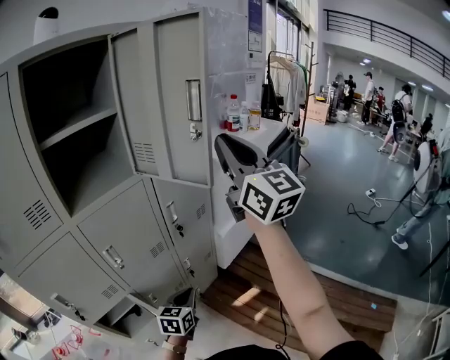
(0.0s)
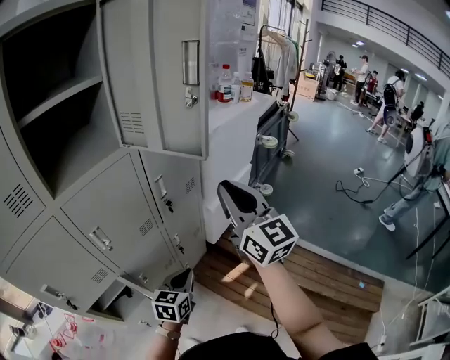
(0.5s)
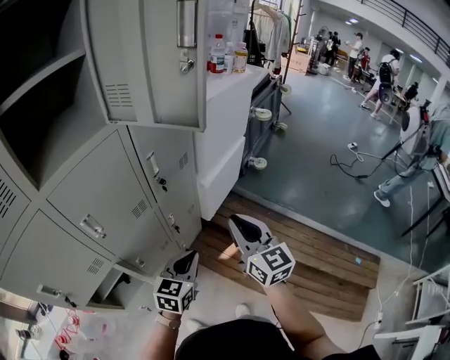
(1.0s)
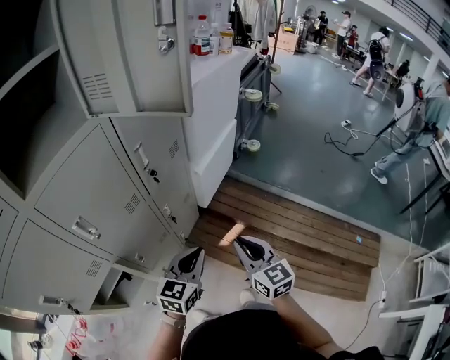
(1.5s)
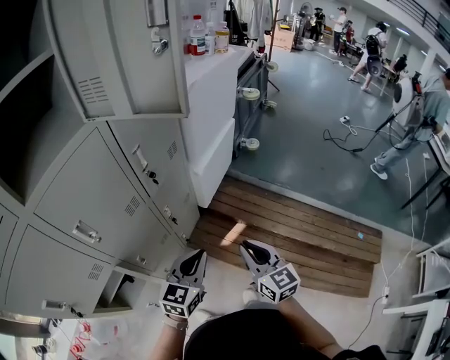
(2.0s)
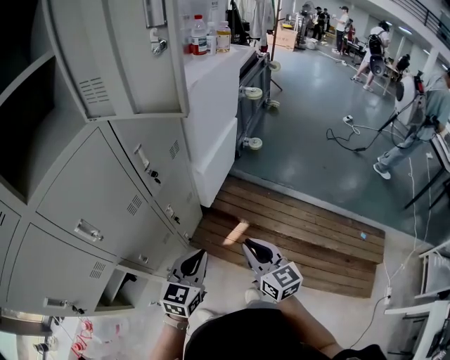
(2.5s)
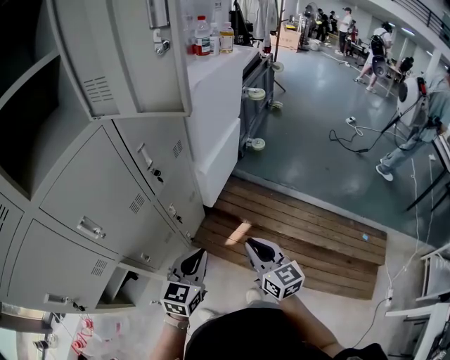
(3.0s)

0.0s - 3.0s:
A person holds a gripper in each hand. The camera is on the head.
0.0s - 1.5s: The right gripper is displaced downward by about 50 cm, and points its fingers roughly 40 degrees further downward. The left gripper is displaced to the right by some 5 cm, and turns by approximately 20 degrees.
1.5s - 3.0s: There are only small adjustments of the grippers.

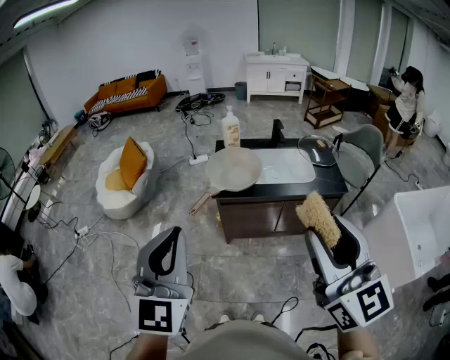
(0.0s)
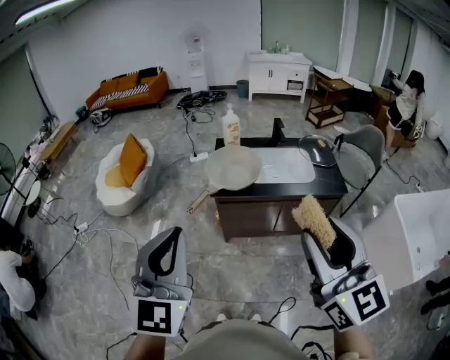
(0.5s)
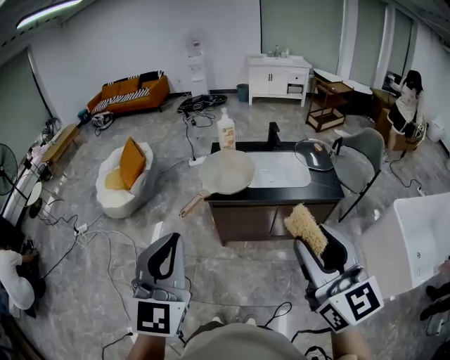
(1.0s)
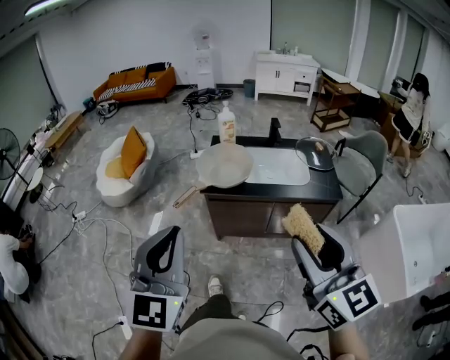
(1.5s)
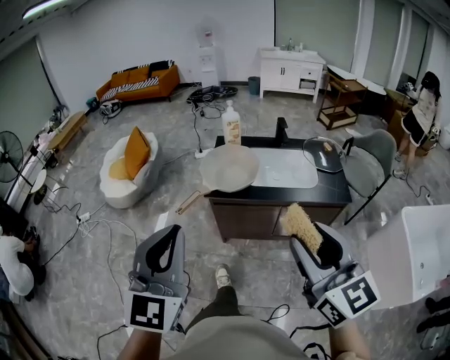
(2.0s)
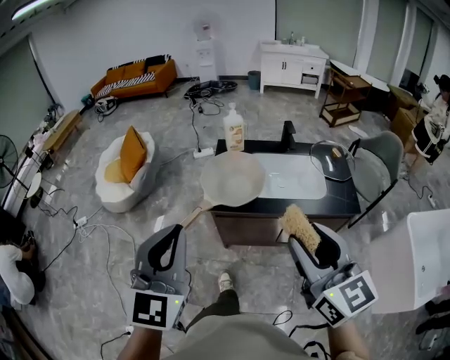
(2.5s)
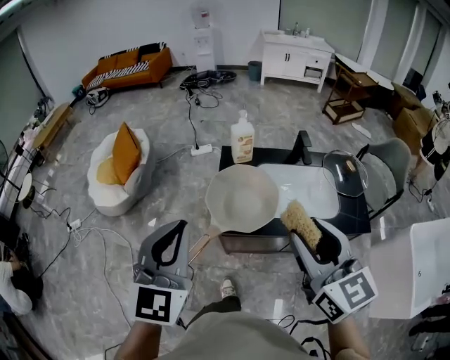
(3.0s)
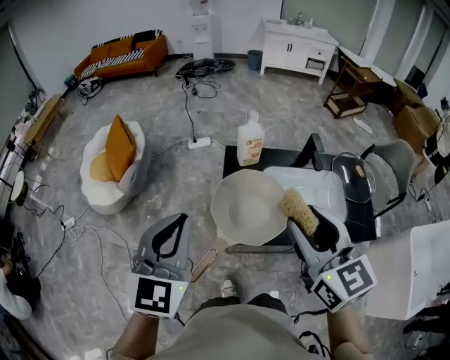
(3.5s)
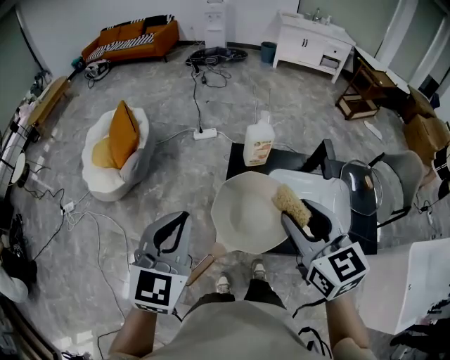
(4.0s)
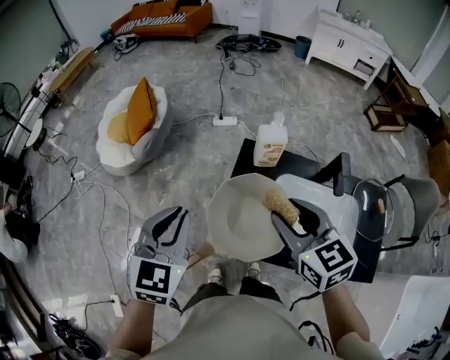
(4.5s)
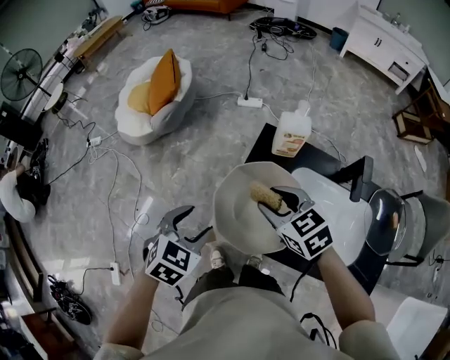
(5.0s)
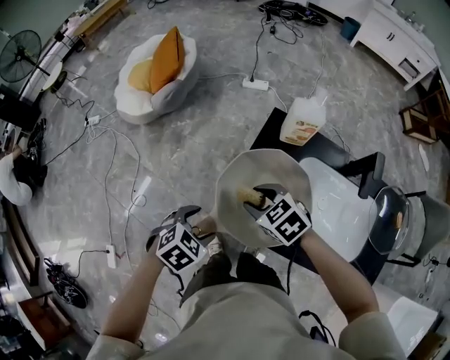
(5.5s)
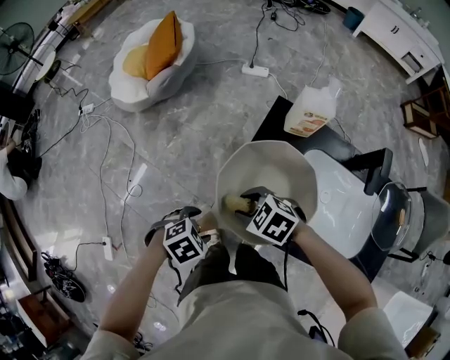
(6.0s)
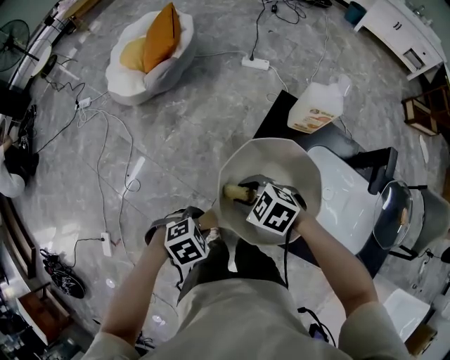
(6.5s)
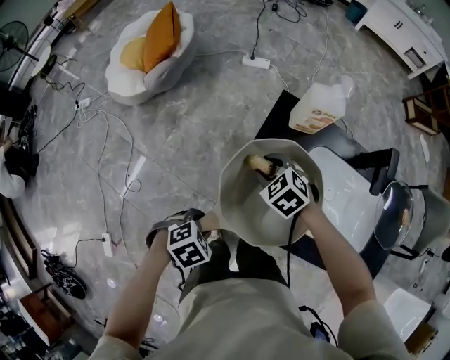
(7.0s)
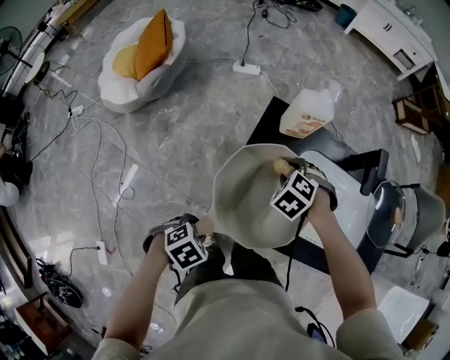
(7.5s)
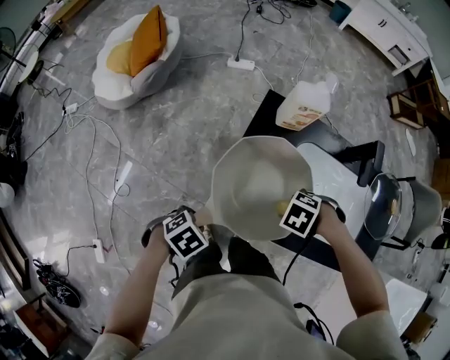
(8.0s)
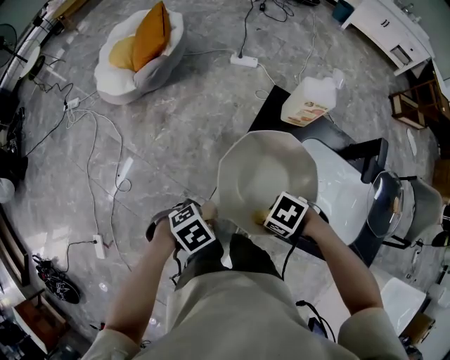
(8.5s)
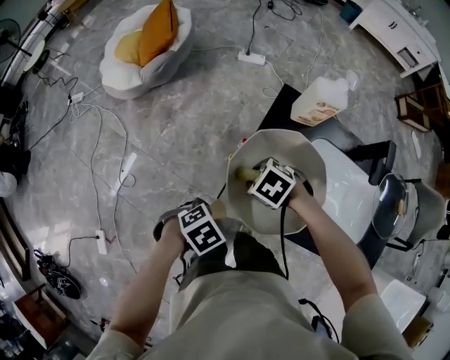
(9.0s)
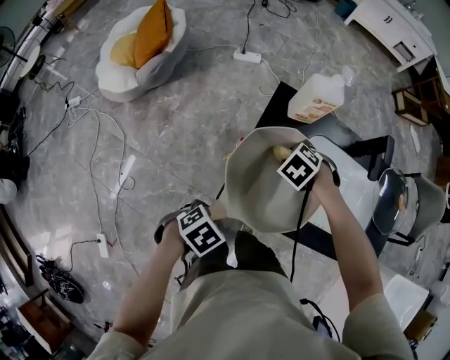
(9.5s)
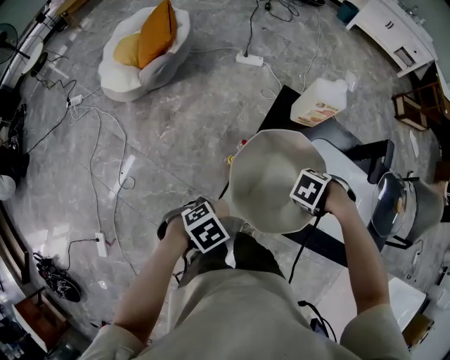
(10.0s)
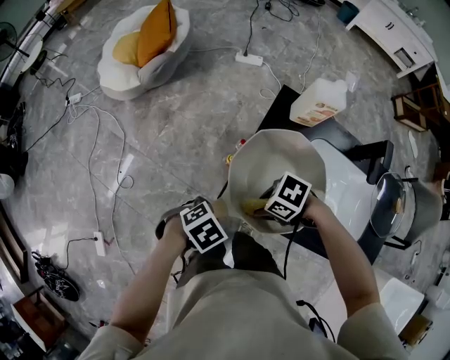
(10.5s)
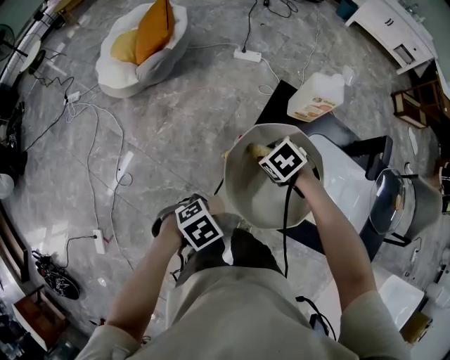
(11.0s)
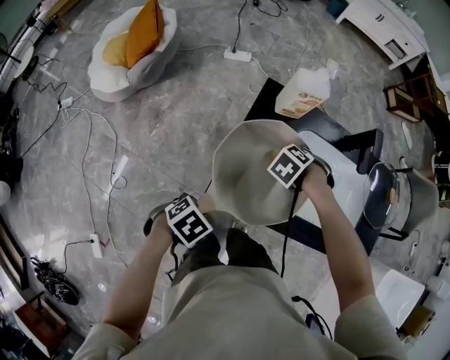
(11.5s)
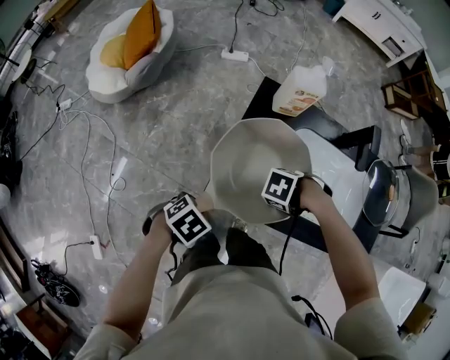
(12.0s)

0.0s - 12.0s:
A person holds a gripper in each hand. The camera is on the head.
0.0s - 2.0s: The right gripper travels downward, to the right and forward by some 10 cm; the left gripper travels to the right by roughly 10 cm.
2.0s - 4.0s: Both grippers are carried forward, approximately 40 cm.
4.0s - 6.0s: Both grippers travel together downward, approximately 35 cm. The right gripper tilts its fingers about 40 degrees downward. The left gripper tips its fingers downward by approximately 60 degrees, and opens up.
6.0s - 8.0s: The right gripper ends up about 20 cm from where it was, and rotates some 40 degrees, while the left gripper closes.

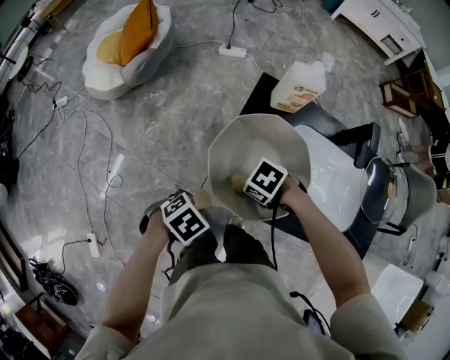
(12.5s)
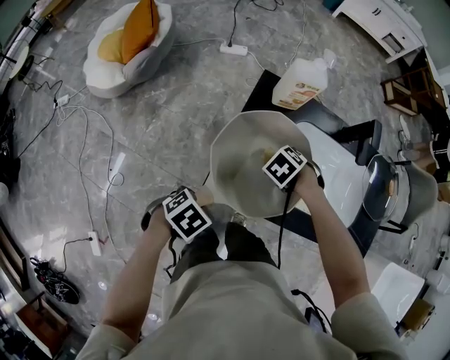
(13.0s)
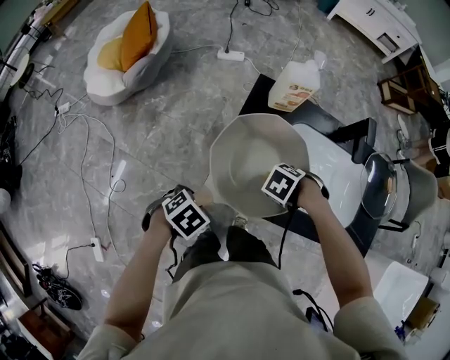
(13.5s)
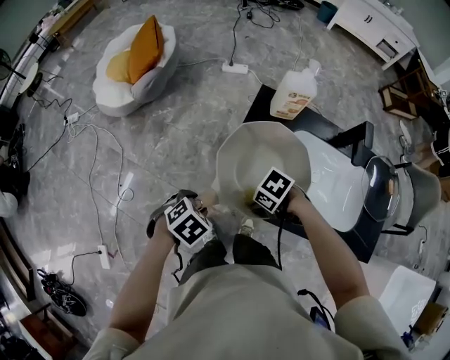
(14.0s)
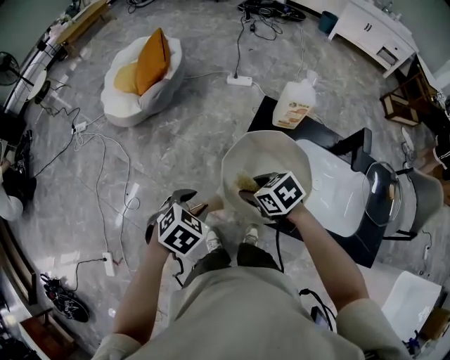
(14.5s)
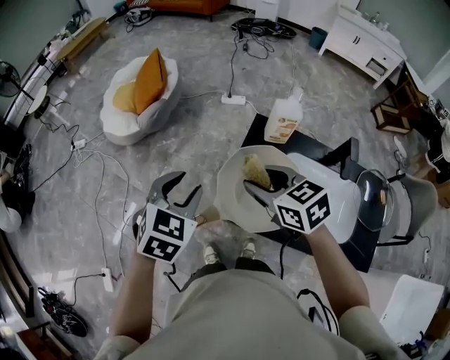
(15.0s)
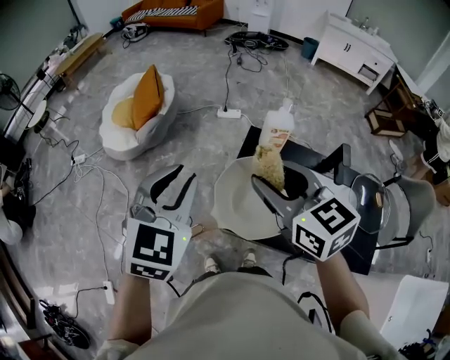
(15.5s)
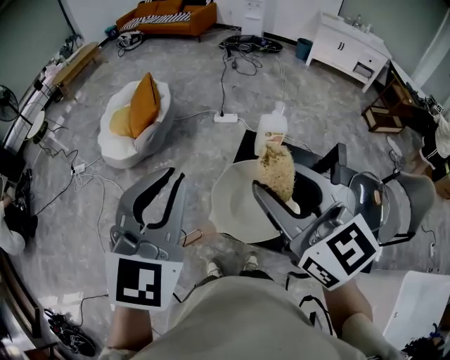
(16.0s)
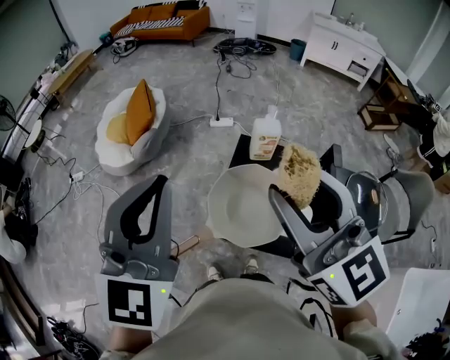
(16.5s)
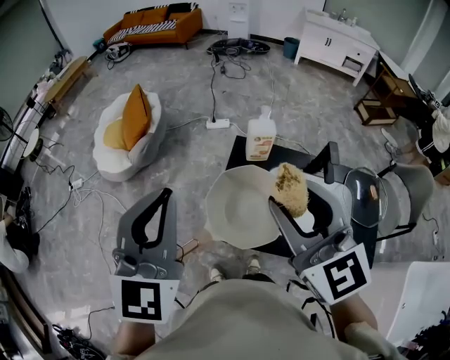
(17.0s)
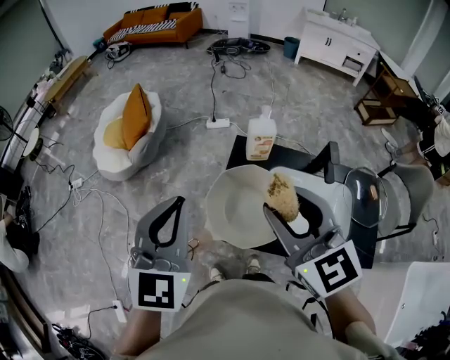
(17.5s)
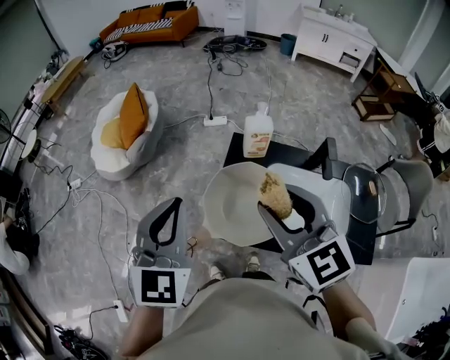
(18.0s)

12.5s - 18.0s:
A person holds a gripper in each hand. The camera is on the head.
12.5s - 14.5s: The two grippers go some 10 cm upward. The right gripper rotates roughly 30 degrees; the left gripper turns by about 30 degrees.
14.5s - 16.0s: The grippers both shift upward by roughly 35 cm. The left gripper points its fingers about 50 degrees further upward, and closes its fingers; the right gripper tips its fingers upward by some 50 degrees.
16.0s - 18.0s: Both grippers travel together downward, some 5 cm.

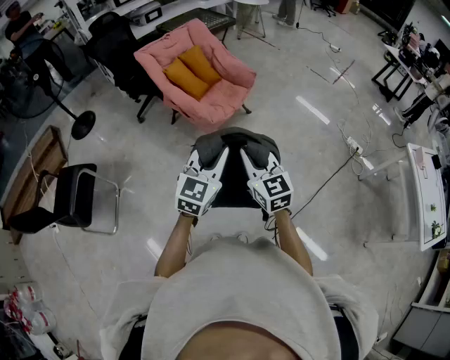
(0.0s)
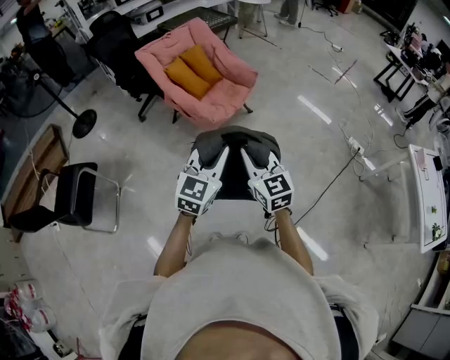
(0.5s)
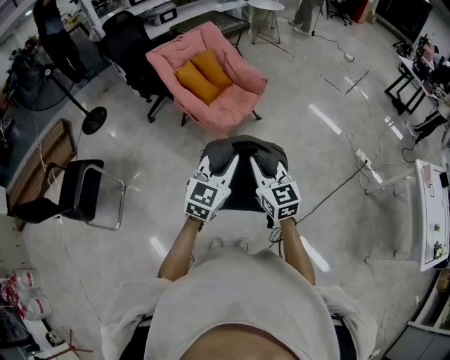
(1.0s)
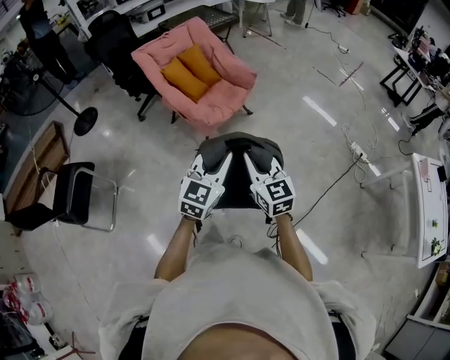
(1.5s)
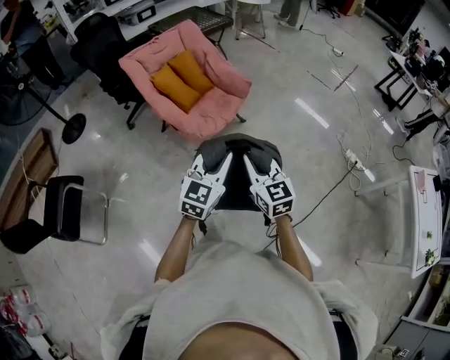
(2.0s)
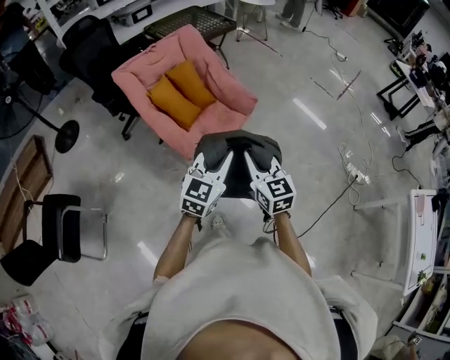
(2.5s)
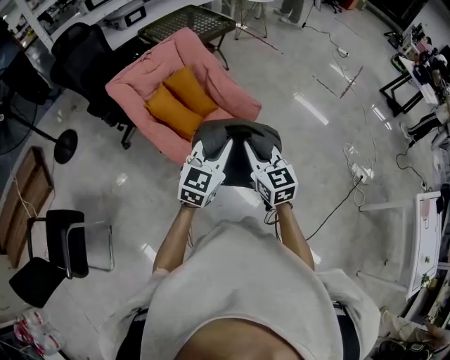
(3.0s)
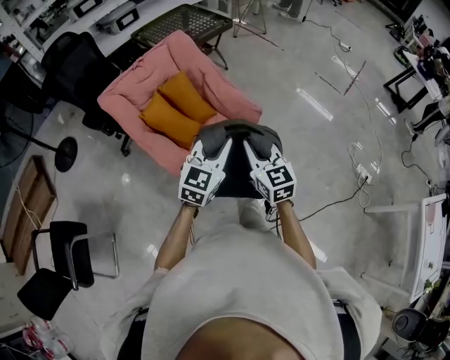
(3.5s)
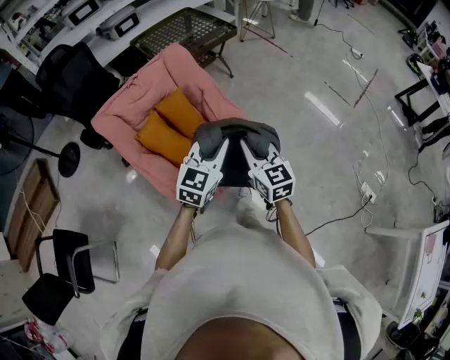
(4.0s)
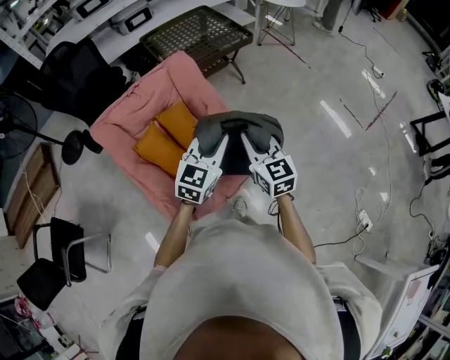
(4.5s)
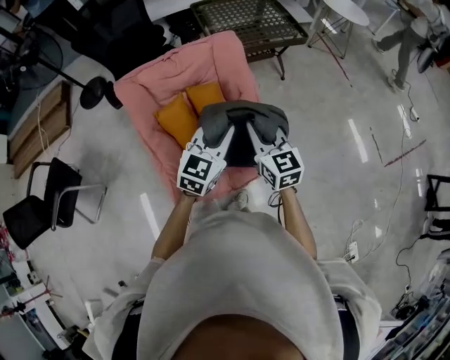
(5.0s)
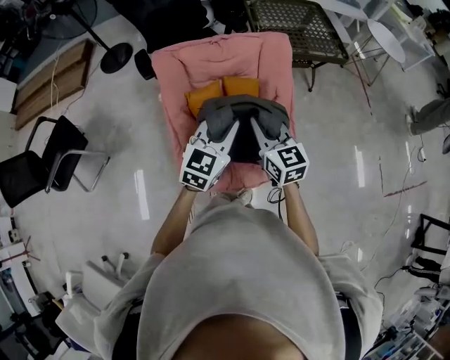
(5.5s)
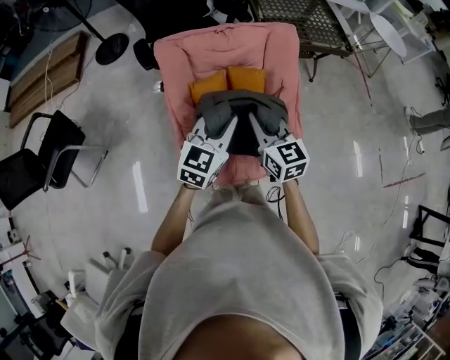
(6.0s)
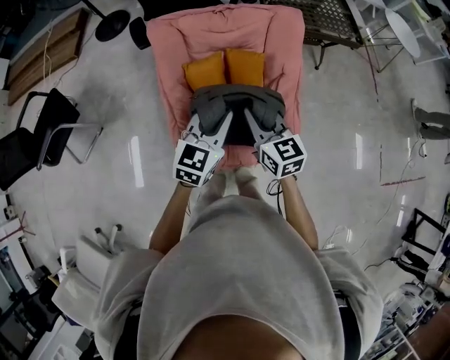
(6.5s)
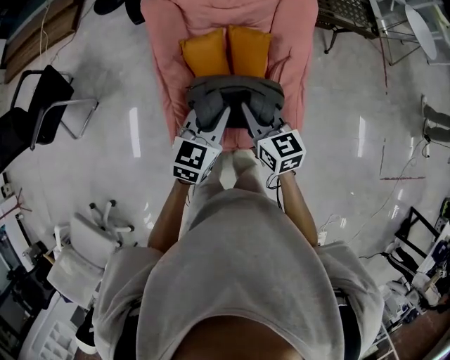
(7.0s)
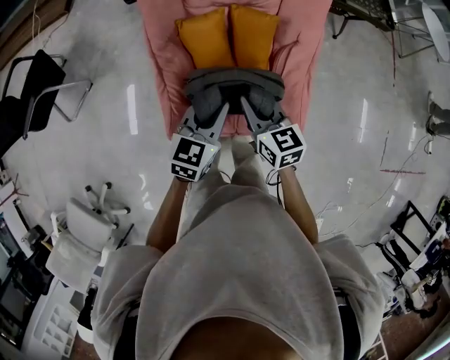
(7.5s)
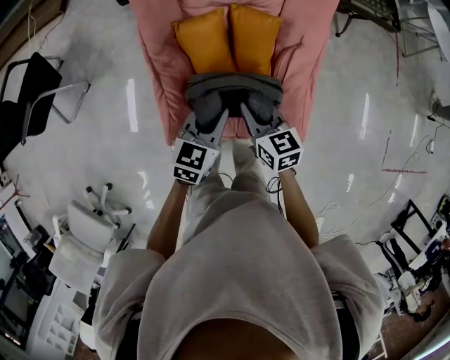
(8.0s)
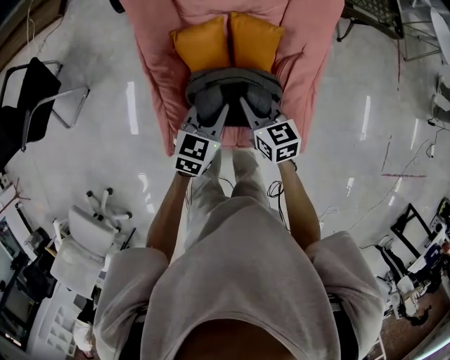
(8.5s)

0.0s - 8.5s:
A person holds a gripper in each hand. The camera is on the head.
0.0s - 2.0s: Both grippers move forward and to the right, roughly 20 cm.
2.0s - 4.0s: Both grippers are carried forward, about 60 cm.
4.0s - 6.5s: The left gripper ends up some 25 cm from where it was, and rotates roughly 40 degrees; the right gripper ends up some 25 cm from where it was, and changes its angle by some 40 degrees.
6.5s - 8.5s: Both grippers travel together downward, some 20 cm.
